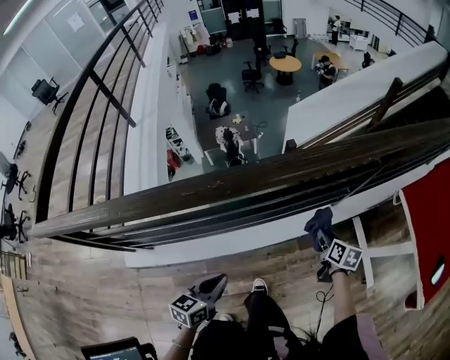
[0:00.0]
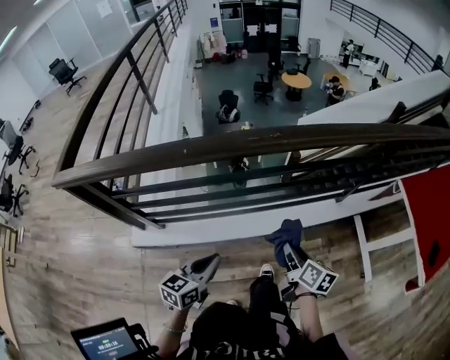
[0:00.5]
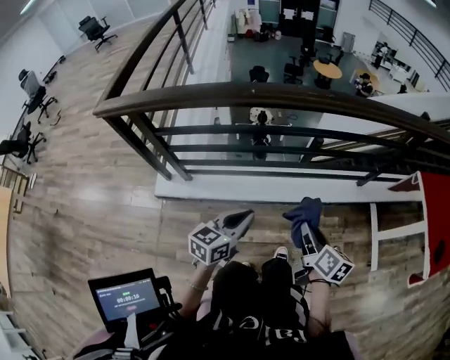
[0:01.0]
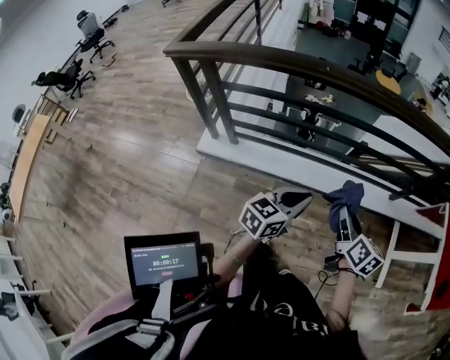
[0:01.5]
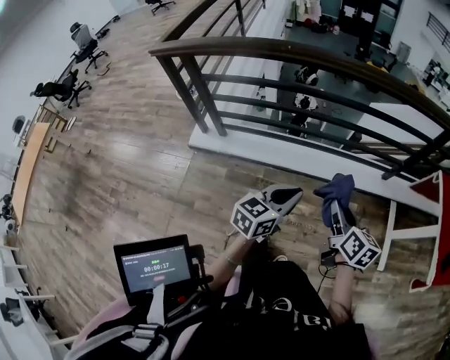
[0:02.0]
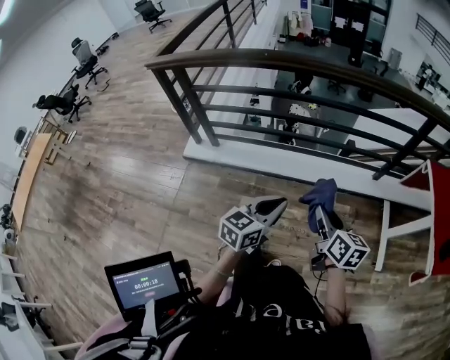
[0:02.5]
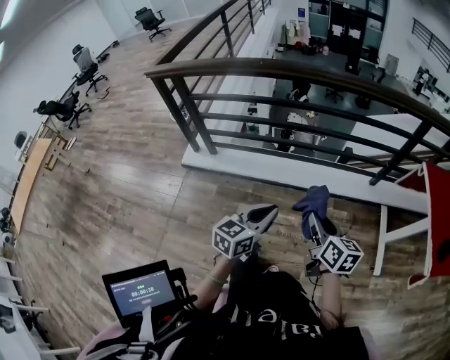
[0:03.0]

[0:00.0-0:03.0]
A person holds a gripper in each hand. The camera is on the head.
0:00.0 to 0:01.5: The right gripper goes roughly 60 cm backward, to the left and upward, and rotates about 30 degrees; the left gripper is displaced backward, upward and to the left by approximately 35 cm.
0:01.5 to 0:03.0: Both grippers move backward and to the right, approximately 20 cm.

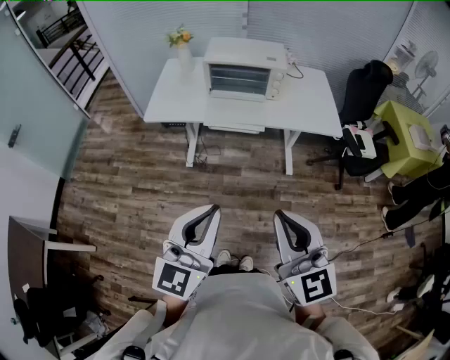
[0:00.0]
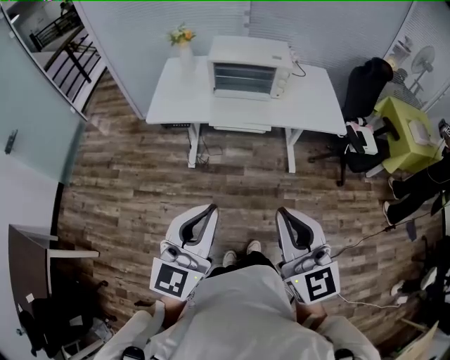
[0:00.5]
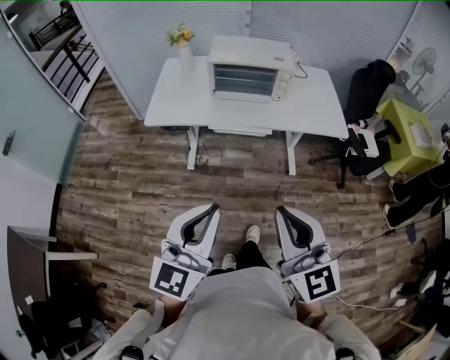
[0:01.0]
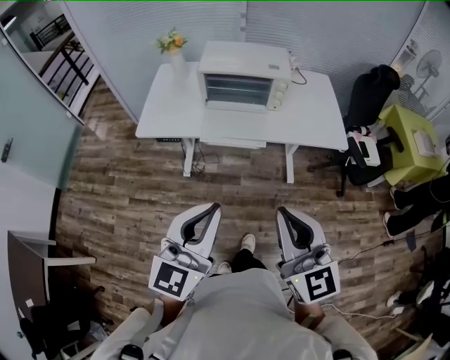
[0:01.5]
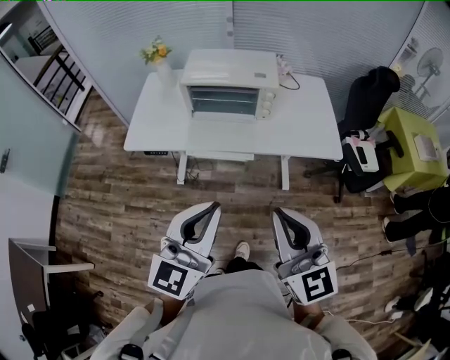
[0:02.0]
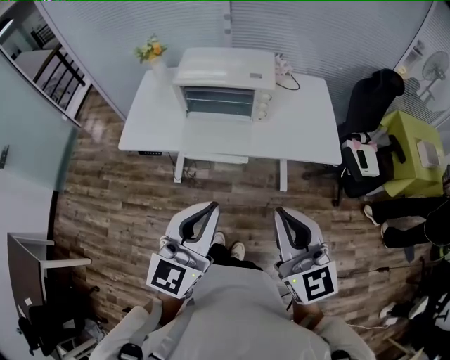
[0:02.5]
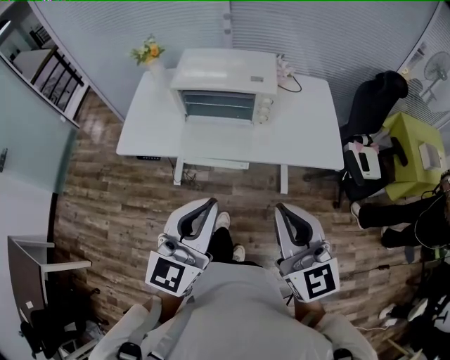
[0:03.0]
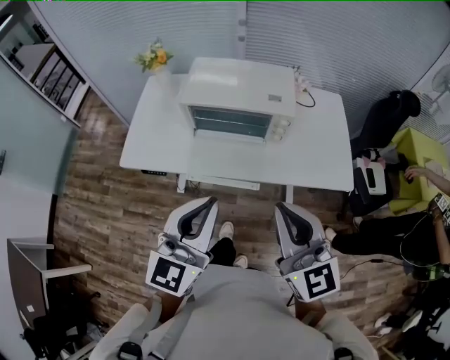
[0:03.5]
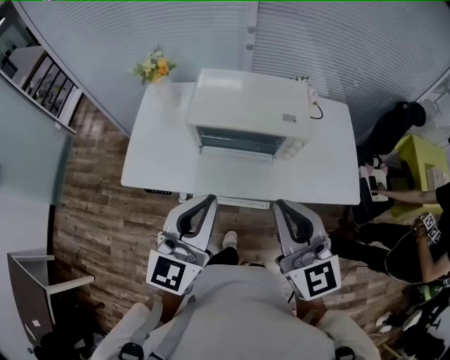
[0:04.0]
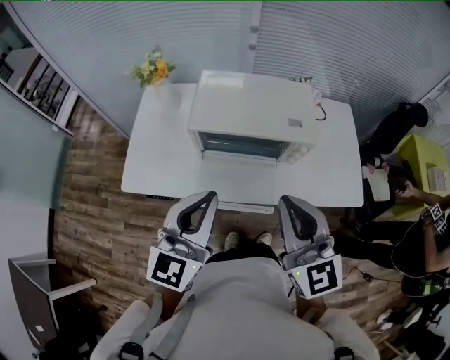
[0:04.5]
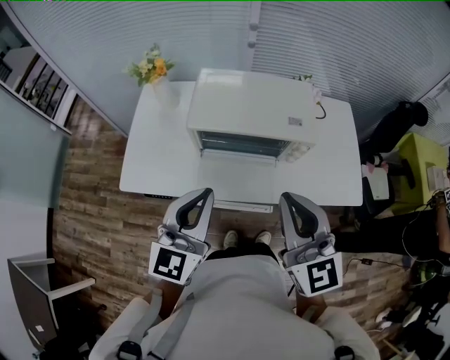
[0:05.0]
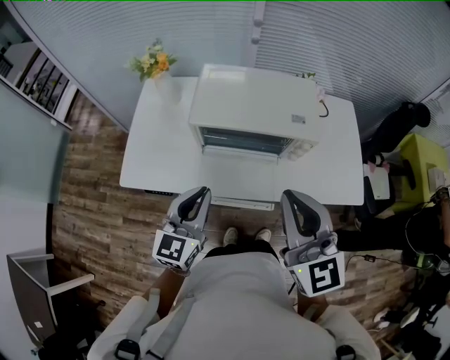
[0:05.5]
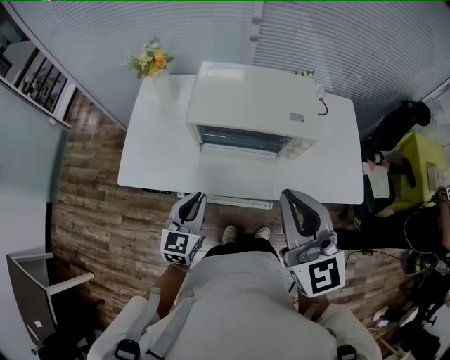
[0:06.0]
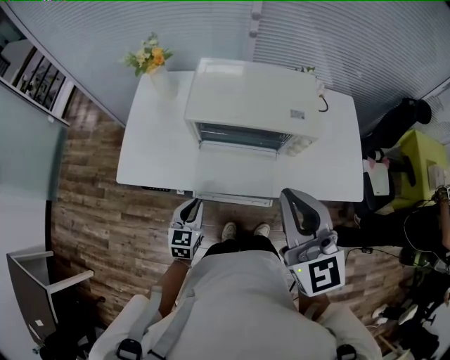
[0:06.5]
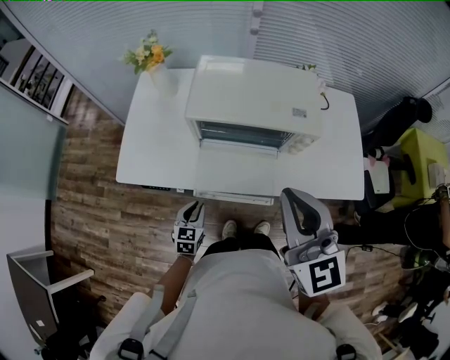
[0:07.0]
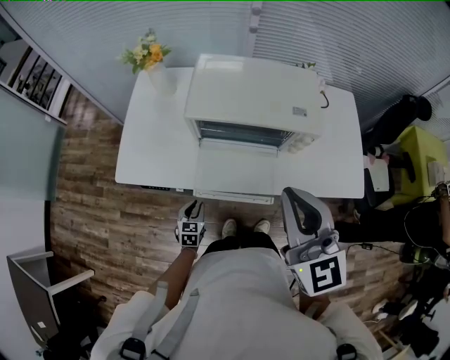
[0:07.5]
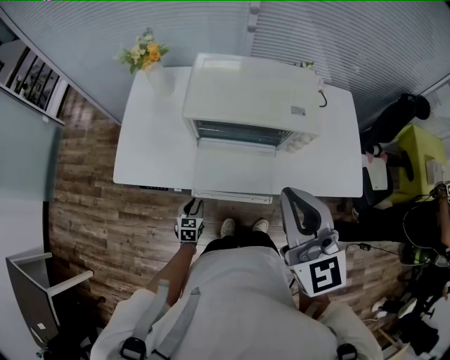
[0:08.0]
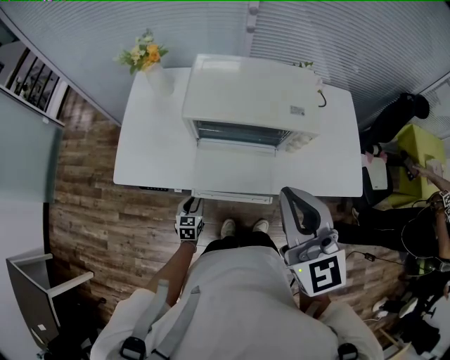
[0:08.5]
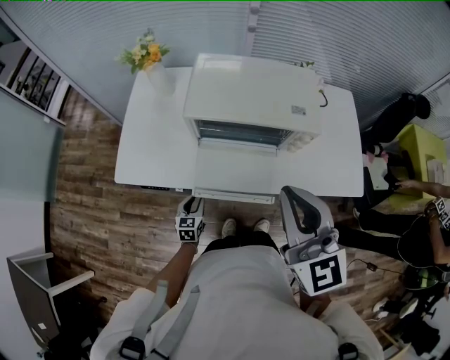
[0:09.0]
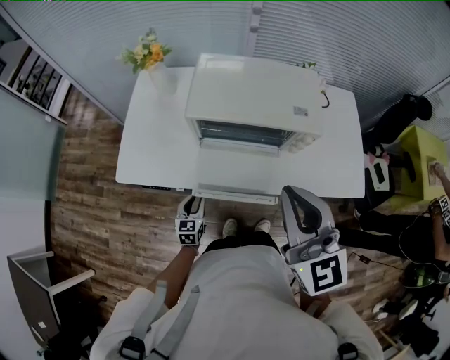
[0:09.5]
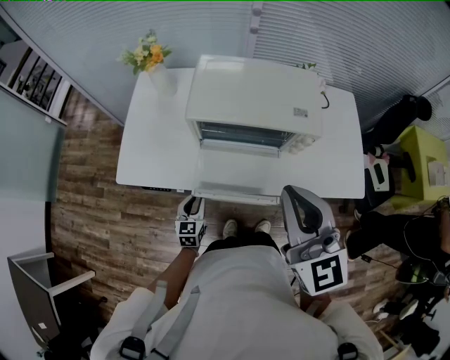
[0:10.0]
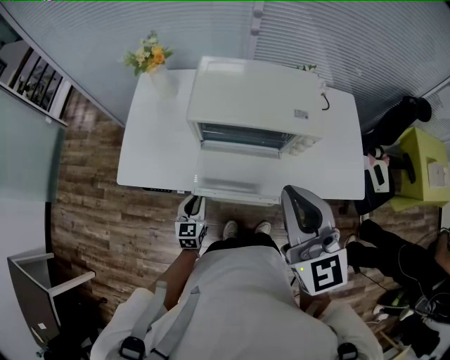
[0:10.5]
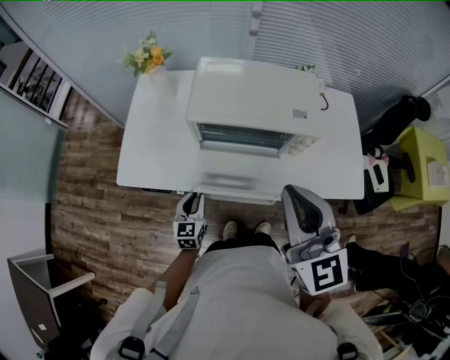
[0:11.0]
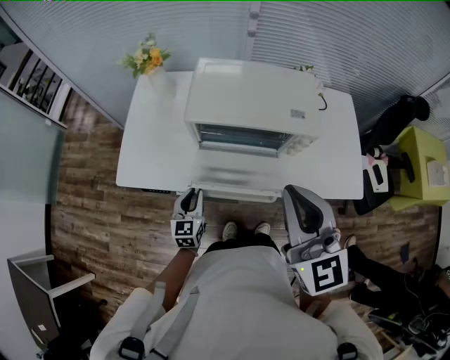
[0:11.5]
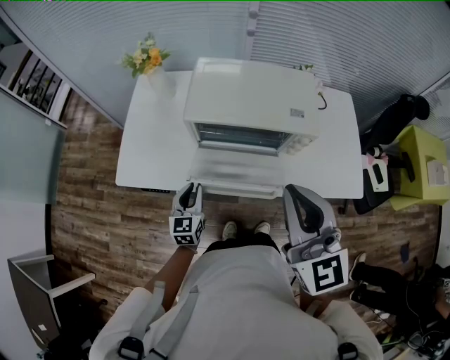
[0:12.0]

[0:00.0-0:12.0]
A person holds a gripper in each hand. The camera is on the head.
0:00.0 to 0:02.0: Both grippers move forward, about 20 cm.
0:02.0 to 0:04.0: Both grippers move forward, about 25 cm.
0:04.0 to 0:06.0: The left gripper travels downward by approximately 20 cm, and turns by approximately 20 degrees.
0:06.0 to 0:08.0: The left gripper shifts about 30 cm downward, and changes its angle by about 30 degrees.
0:08.0 to 0:10.0: The left gripper travels upward by about 10 cm.
0:10.0 to 0:12.0: The left gripper moves upward, some 10 cm.

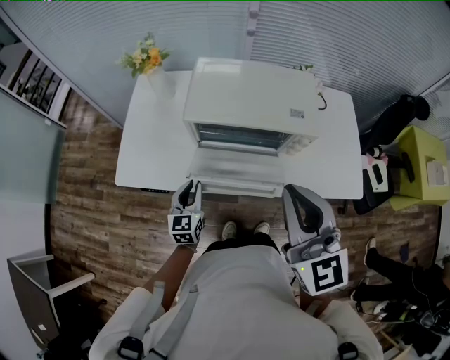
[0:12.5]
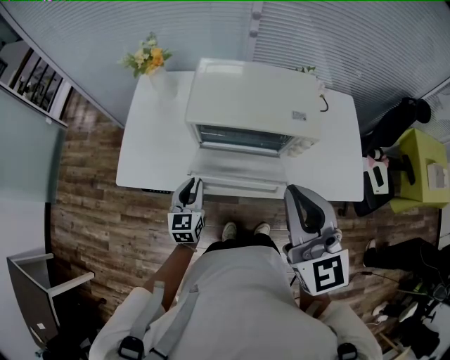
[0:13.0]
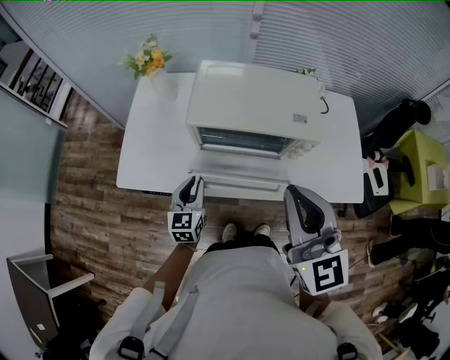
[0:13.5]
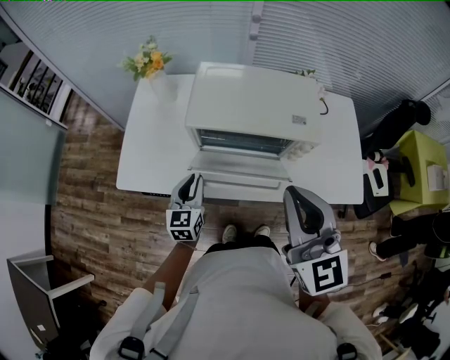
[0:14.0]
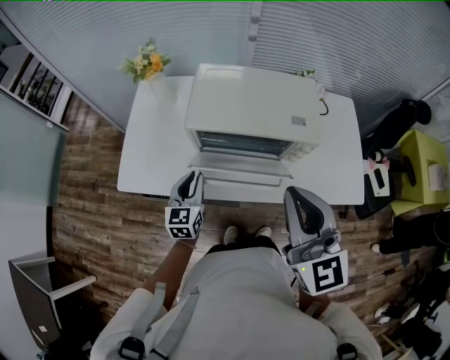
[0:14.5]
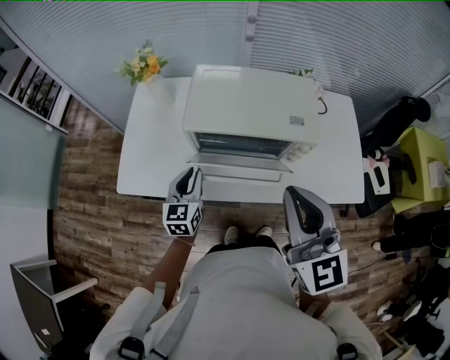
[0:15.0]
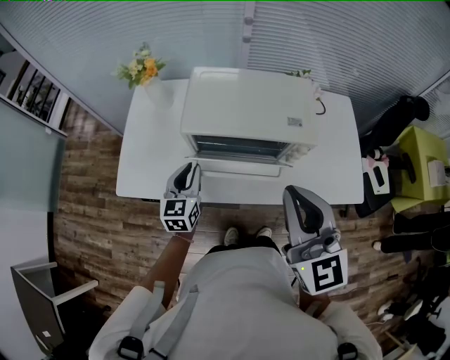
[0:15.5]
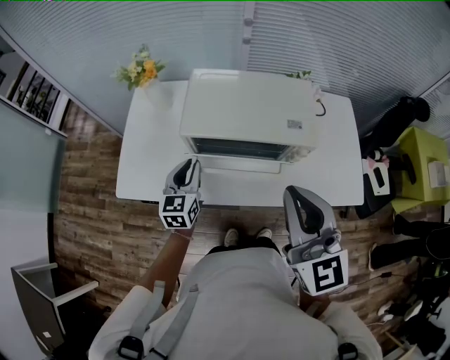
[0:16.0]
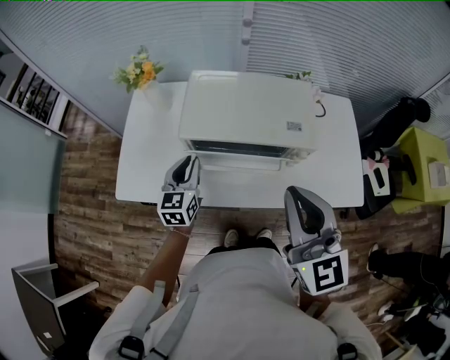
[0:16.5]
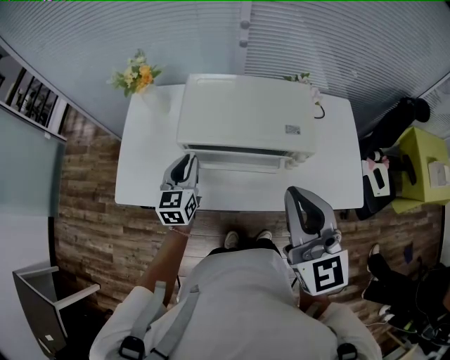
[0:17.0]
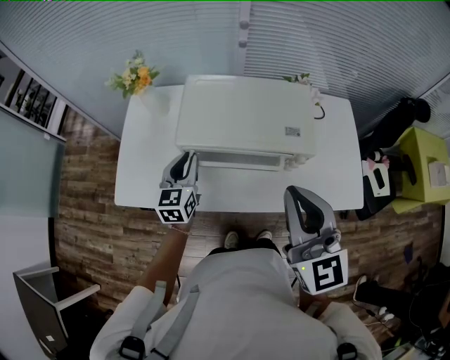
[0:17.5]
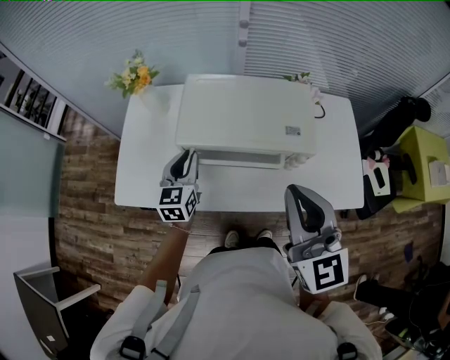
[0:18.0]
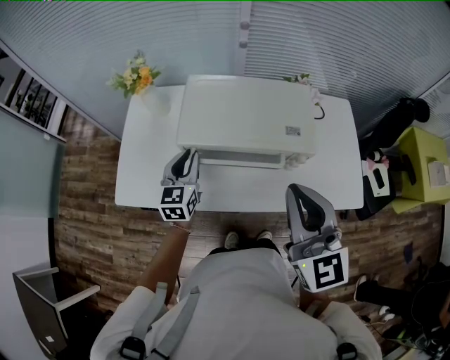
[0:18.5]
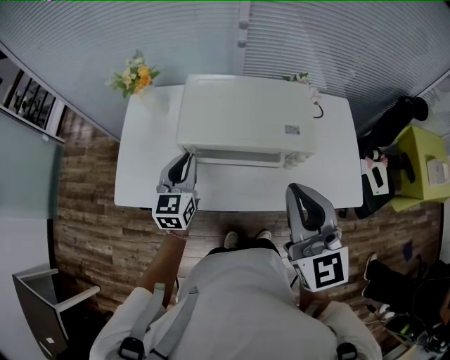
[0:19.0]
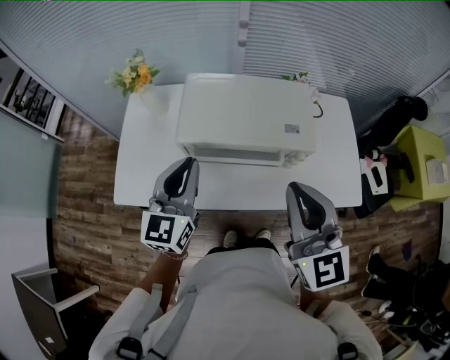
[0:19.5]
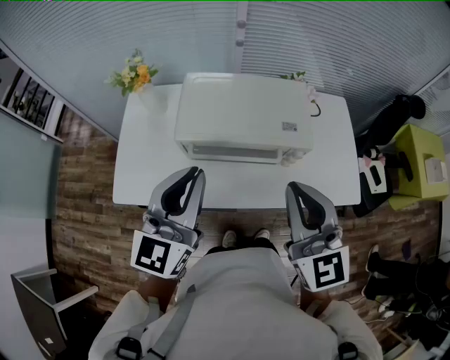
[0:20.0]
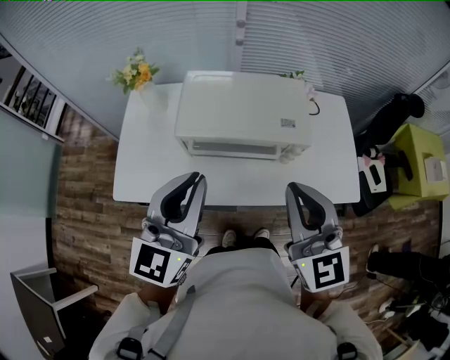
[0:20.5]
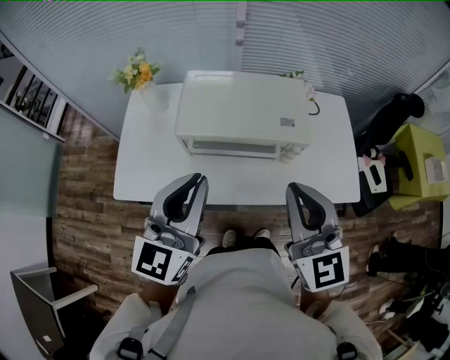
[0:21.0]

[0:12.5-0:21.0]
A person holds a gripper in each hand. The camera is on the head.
0:12.5 to 0:14.5: The left gripper ends up roughly 5 cm from where it was.
0:14.5 to 0:16.5: The left gripper is displaced forward by some 5 cm.
0:16.5 to 0:19.0: The grippers move only a little.
0:19.0 to 0:21.0: The left gripper travels upward and backward by about 20 cm.

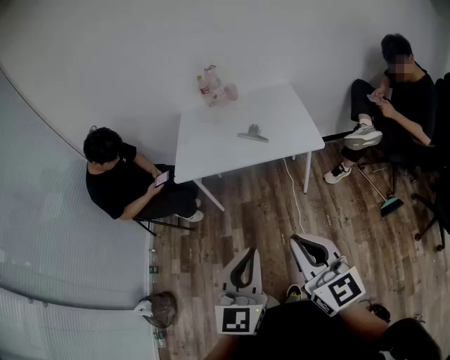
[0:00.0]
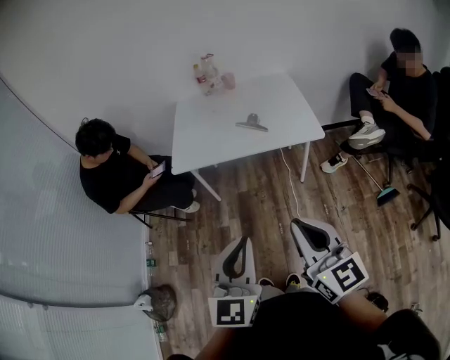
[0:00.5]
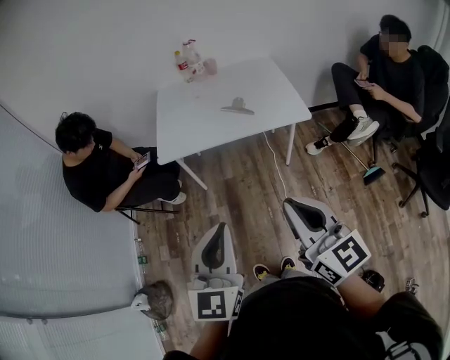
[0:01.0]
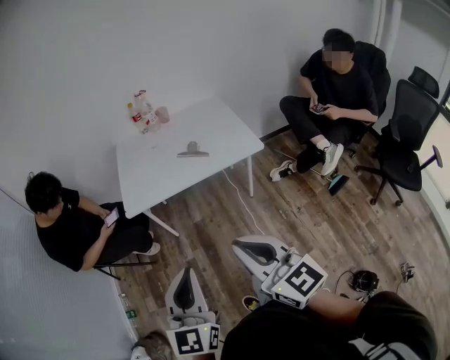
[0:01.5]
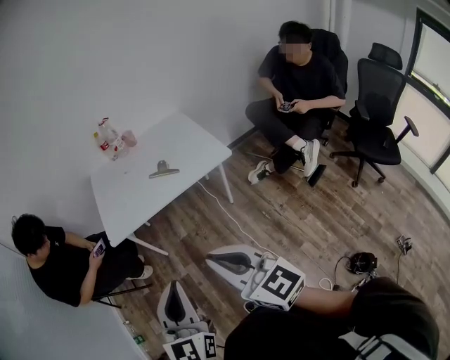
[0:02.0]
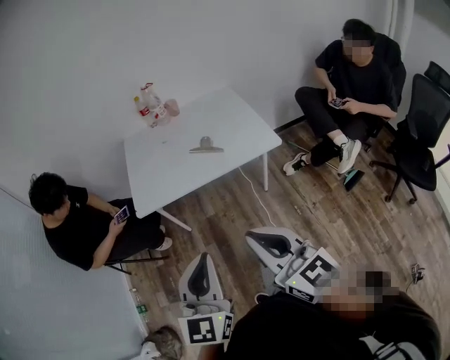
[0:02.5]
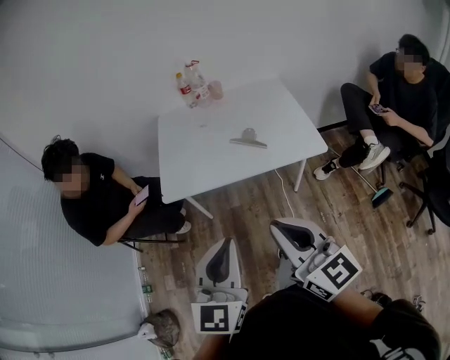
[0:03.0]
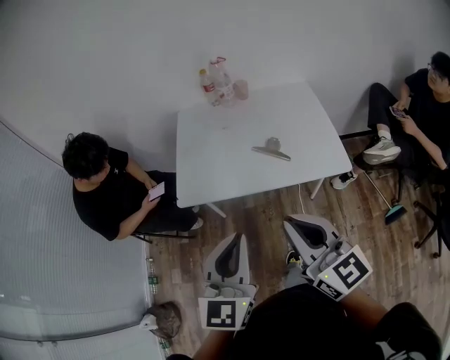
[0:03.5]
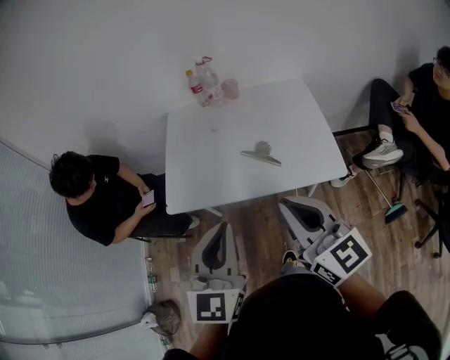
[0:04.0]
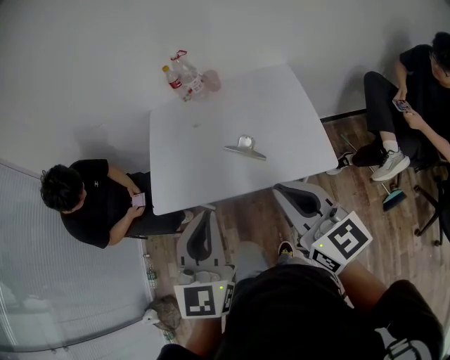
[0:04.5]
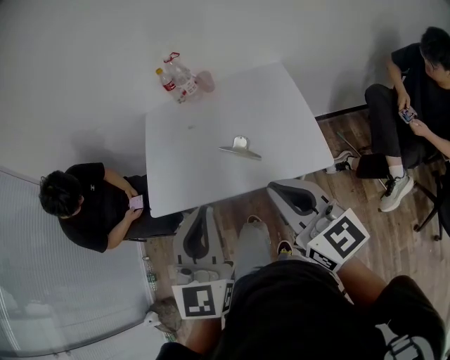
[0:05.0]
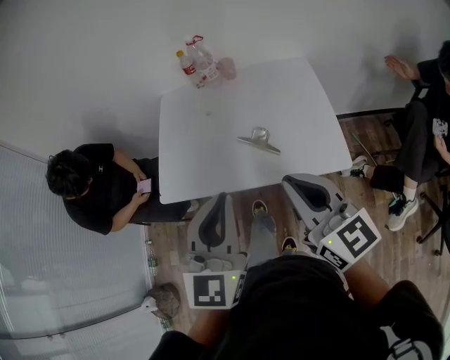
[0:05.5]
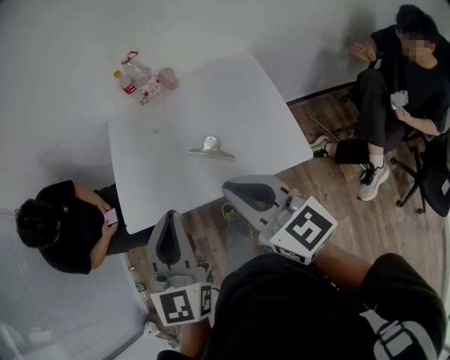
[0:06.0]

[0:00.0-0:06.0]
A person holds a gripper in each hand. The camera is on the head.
0:00.0 to 0:02.0: Both grippers travel together to the left, some 10 cm.
0:02.0 to 0:04.0: The two grippers go some 30 cm forward.
0:04.0 to 0:06.0: Both grippers travel together forward, approximately 10 cm.
